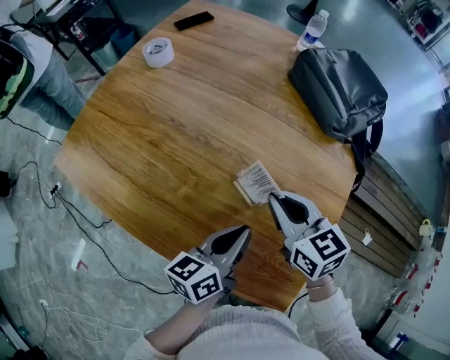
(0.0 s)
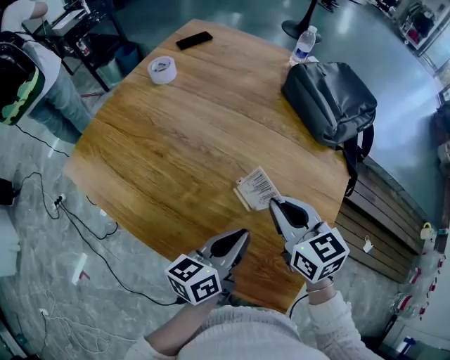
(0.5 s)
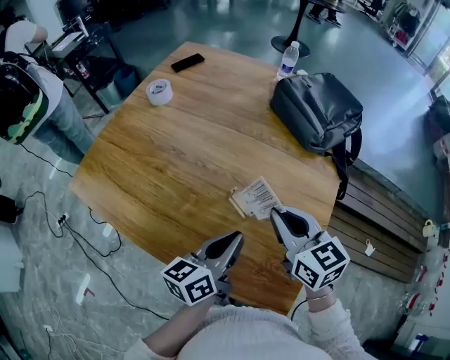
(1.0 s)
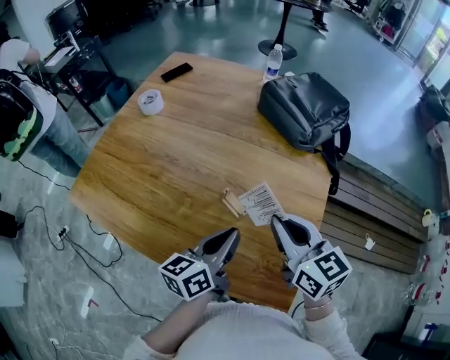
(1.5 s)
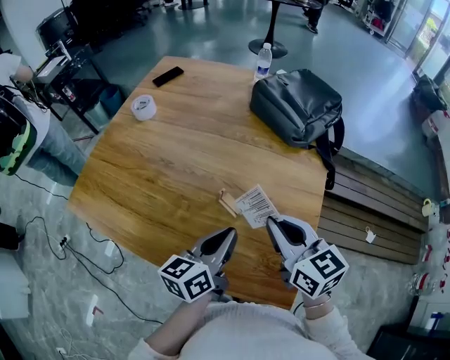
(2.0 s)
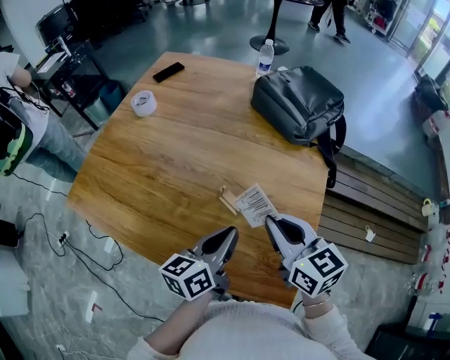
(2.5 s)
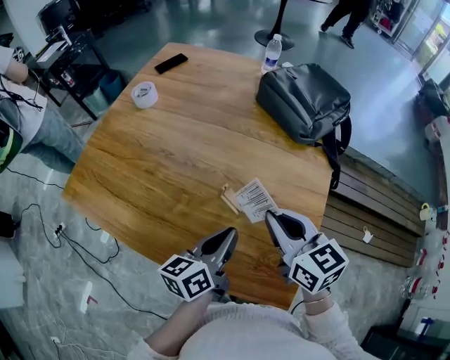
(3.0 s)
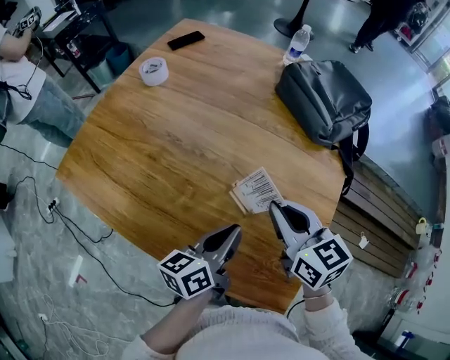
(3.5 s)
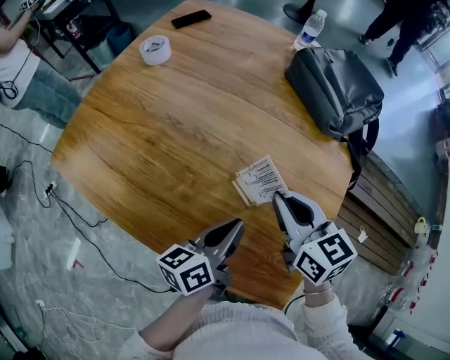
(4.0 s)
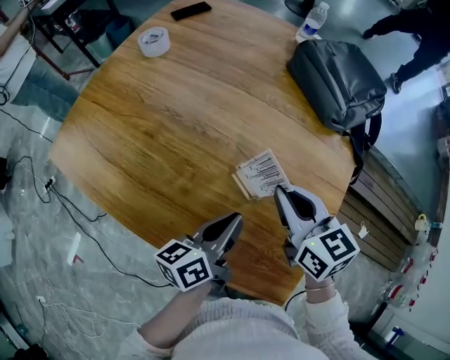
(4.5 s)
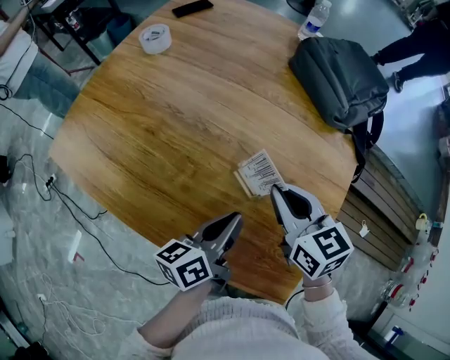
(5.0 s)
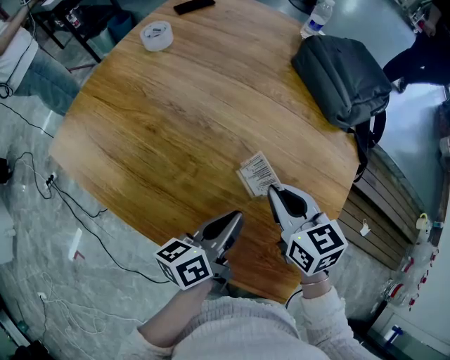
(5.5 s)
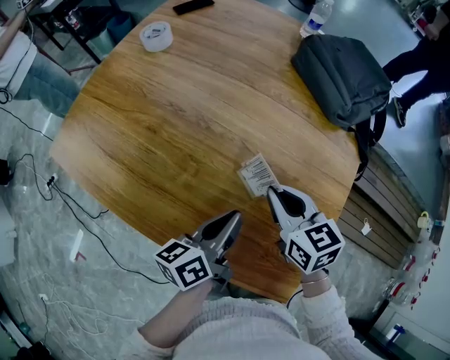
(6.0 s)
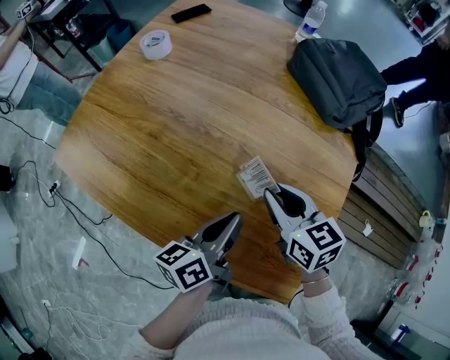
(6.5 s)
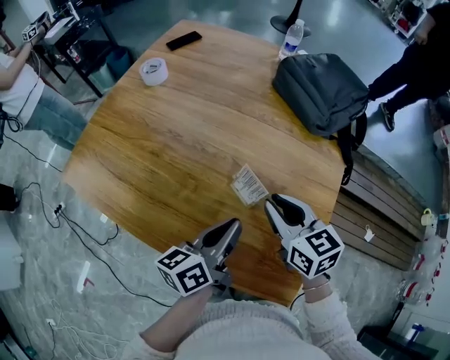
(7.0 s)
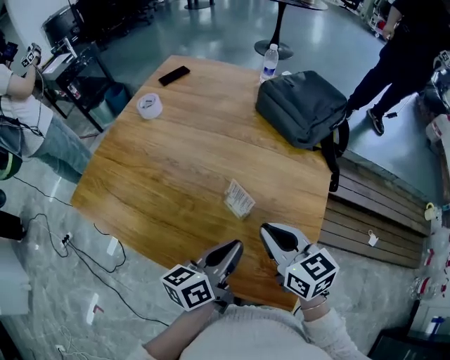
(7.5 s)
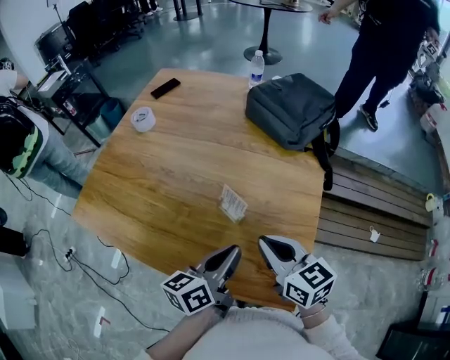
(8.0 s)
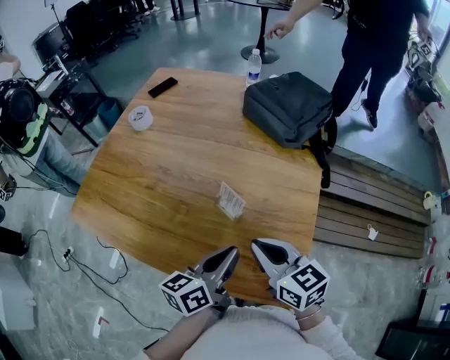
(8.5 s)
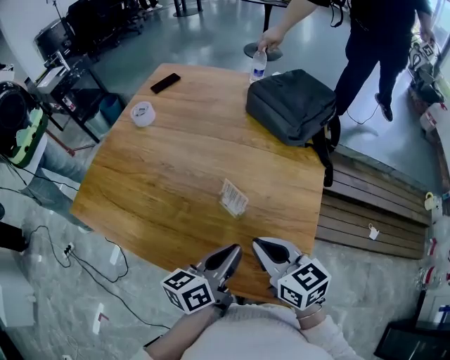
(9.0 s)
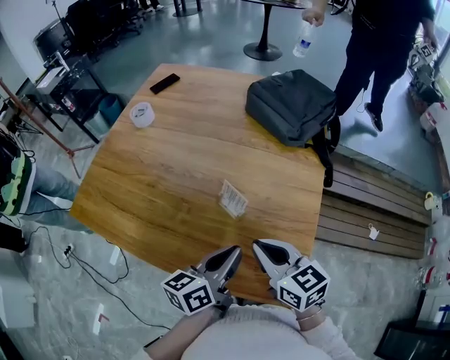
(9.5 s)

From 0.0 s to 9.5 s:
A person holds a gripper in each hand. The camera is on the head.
From 0.0 s to 2.0 s: The right gripper is displaced upward and backward by approximately 10 cm; the left gripper moves upward, some 5 cm.
From 2.0 s to 4.0 s: The left gripper shifts roughly 5 cm downward, while the right gripper is displaced forward and downward by roughly 10 cm.
From 4.0 s to 5.5 s: The grippers stay close to where they were, moving slightly.
From 5.5 s to 7.5 s: The left gripper moves upward, some 5 cm. The right gripper heads backward and upward, covering approximately 10 cm.
From 7.5 s to 9.5 s: The grippers stay close to where they were, moving slightly.

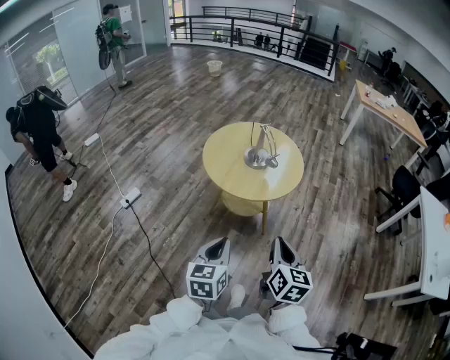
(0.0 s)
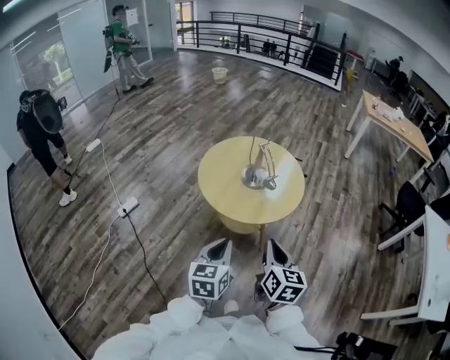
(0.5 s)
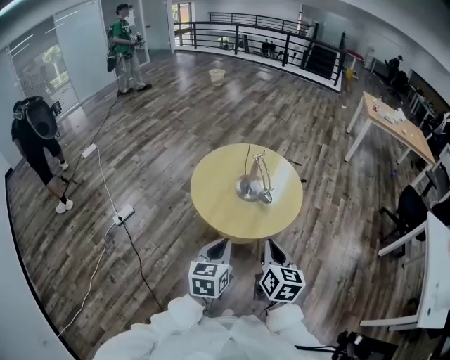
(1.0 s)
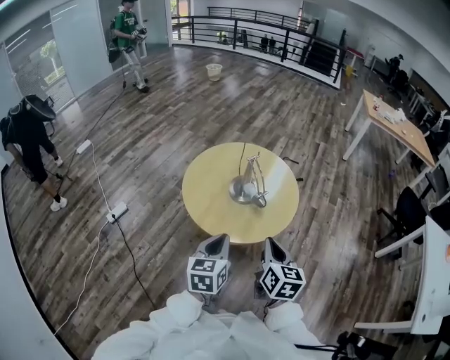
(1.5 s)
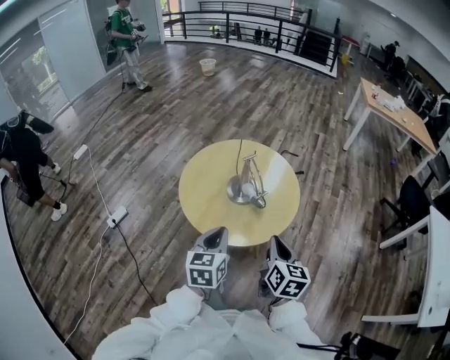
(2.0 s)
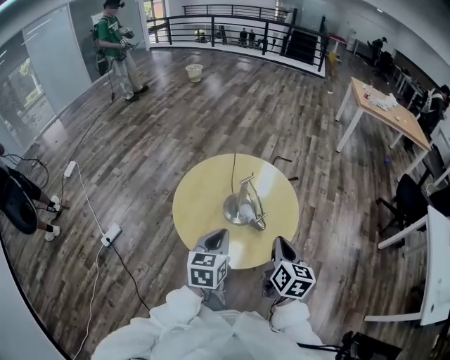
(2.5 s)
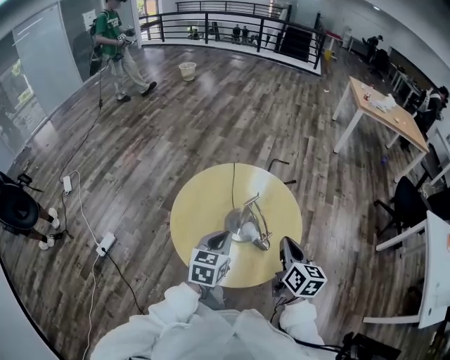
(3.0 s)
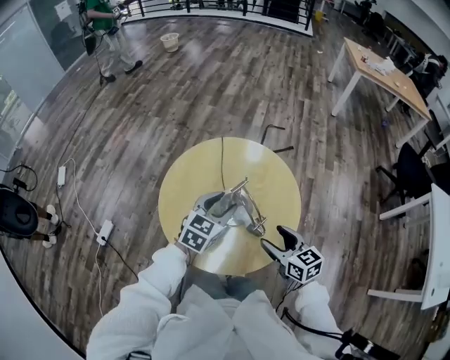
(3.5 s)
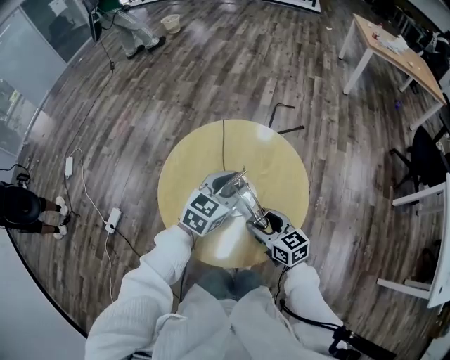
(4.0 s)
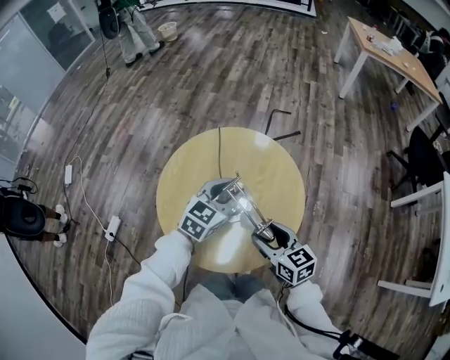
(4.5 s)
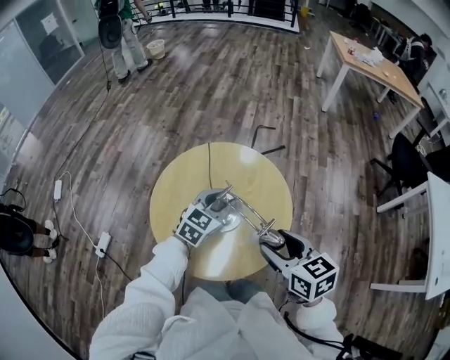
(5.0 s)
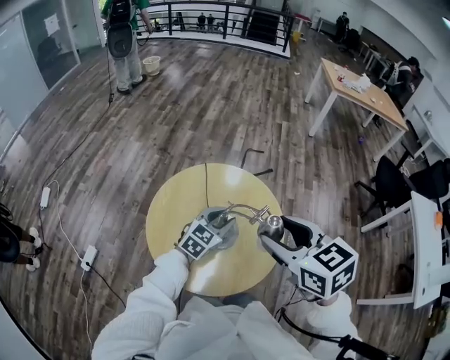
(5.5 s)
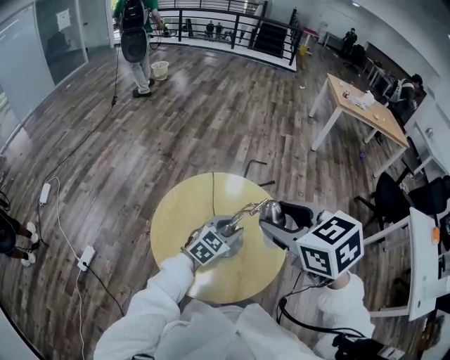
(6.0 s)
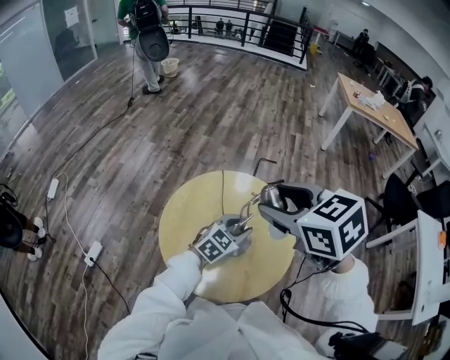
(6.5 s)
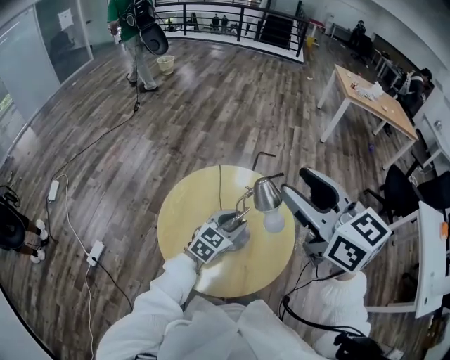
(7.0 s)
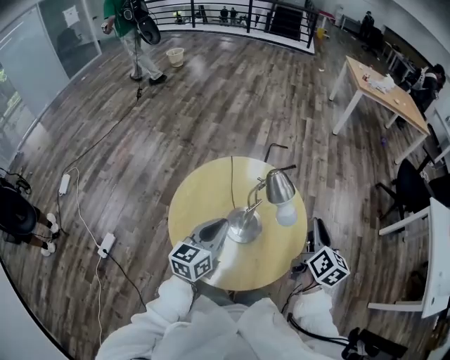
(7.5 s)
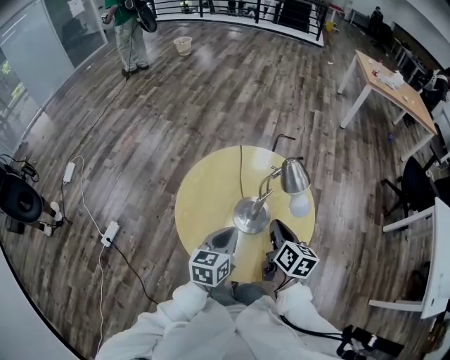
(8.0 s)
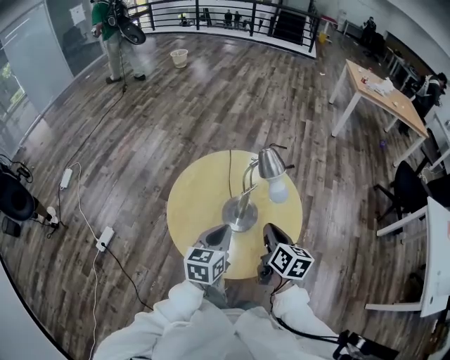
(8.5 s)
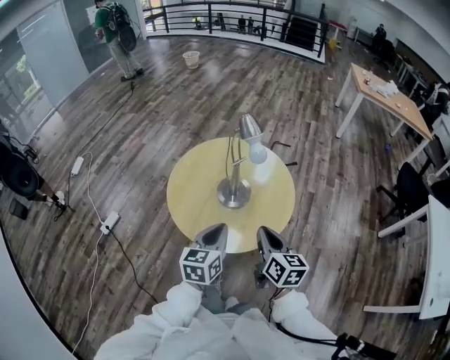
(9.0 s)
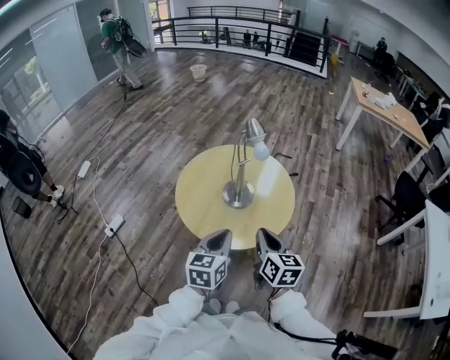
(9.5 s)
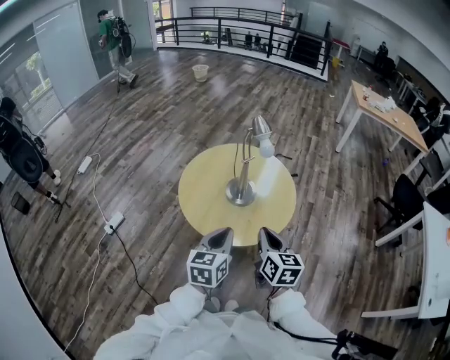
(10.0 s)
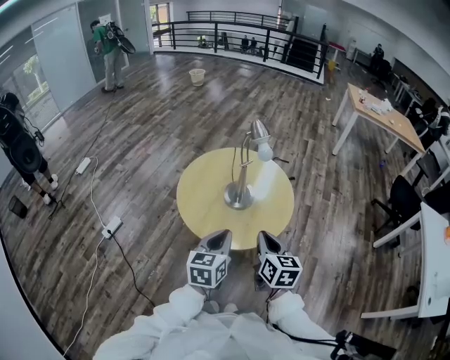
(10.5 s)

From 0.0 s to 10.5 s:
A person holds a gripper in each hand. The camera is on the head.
From 0.0 s to 2.0 s: Both grippers move forward, roughly 30 cm.
From 2.0 s to 4.0 s: The right gripper travels forward and downward by about 25 cm, turns by about 30 degrees, and opens up; the left gripper goes some 30 cm forward, changes its angle by roughly 40 degrees, and opens.
From 4.0 s to 6.5 s: The right gripper heads upward, covering approximately 35 cm, and swivels roughly 30 degrees.
From 6.5 s to 8.5 s: The left gripper is displaced backward and to the left by about 15 cm, turns by roughly 40 degrees, and closes; the right gripper heads downward, covering roughly 25 cm, twists roughly 40 degrees clockwise, seen from behind, and closes up.
From 8.5 s to 10.5 s: The two grippers go approximately 20 cm backward.

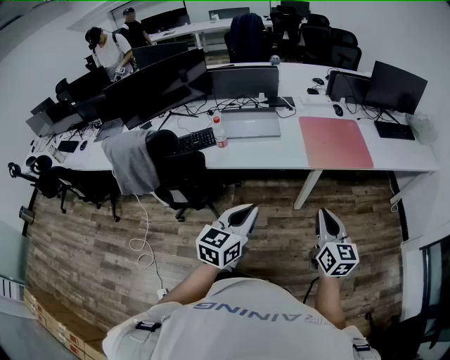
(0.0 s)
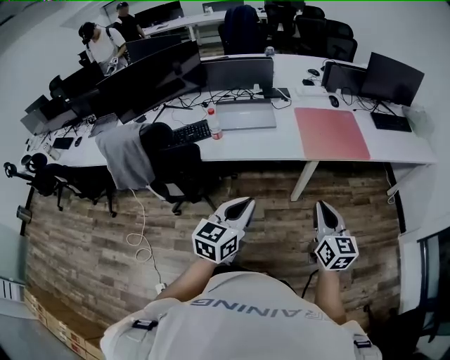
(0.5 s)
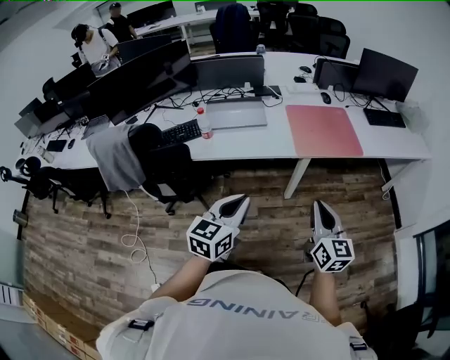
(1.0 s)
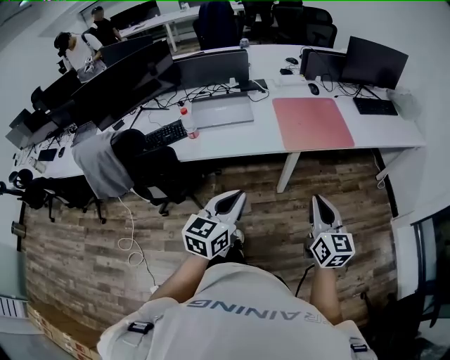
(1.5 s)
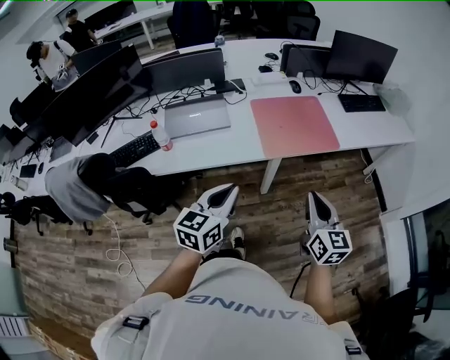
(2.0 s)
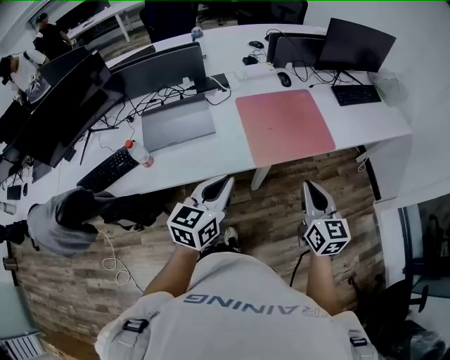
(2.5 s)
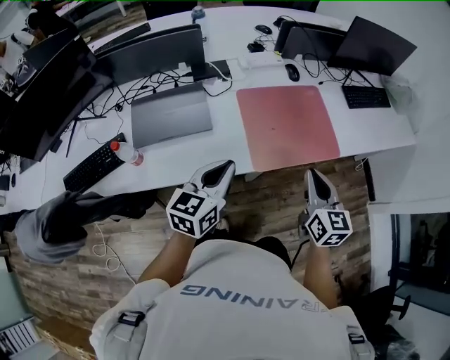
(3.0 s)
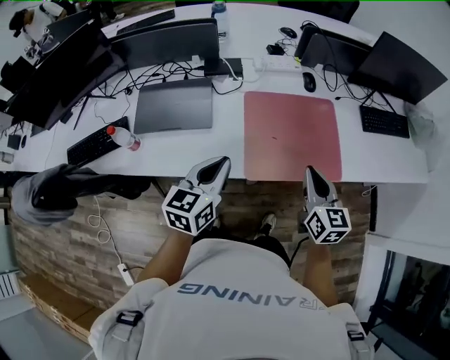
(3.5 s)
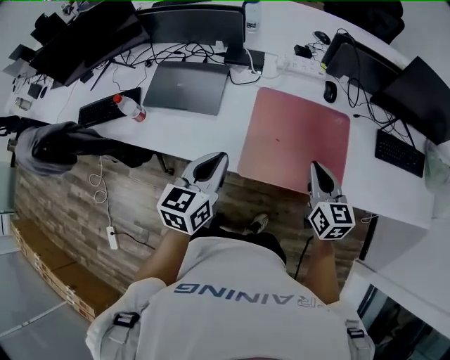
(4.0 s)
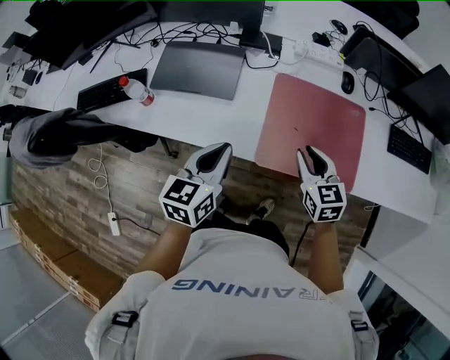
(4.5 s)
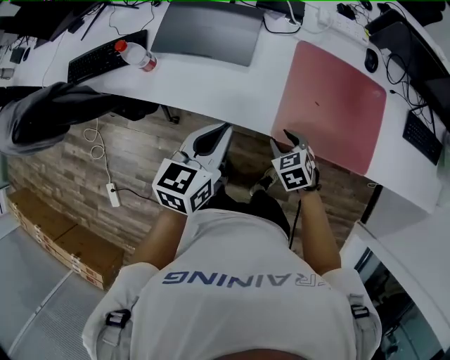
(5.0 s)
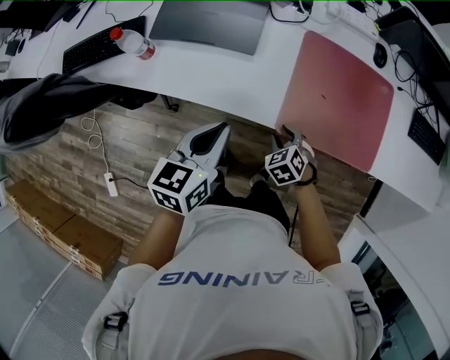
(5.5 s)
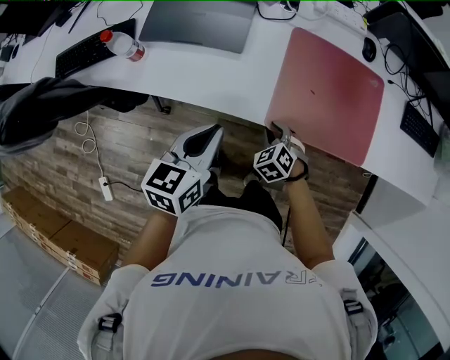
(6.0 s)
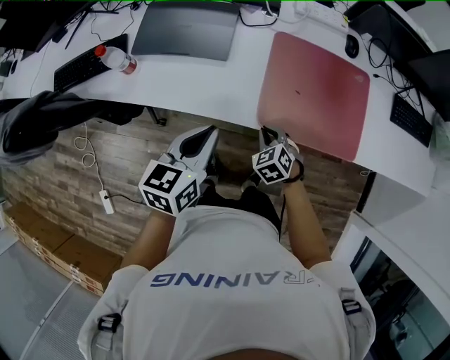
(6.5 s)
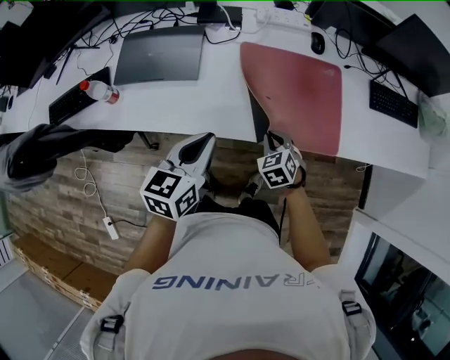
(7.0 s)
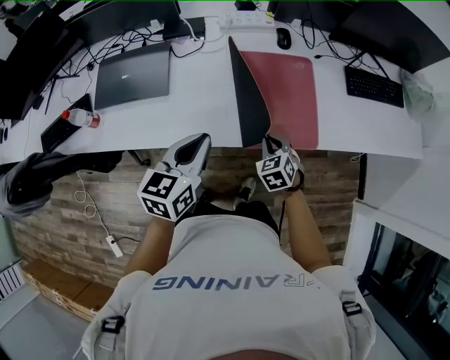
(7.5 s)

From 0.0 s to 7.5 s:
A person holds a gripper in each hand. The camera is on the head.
From 0.0 s to 2.0 s: The two grippers go roughly 15 cm forward and to the right.
From 2.0 s to 4.0 s: The left gripper ends up about 25 cm from where it was, and changes its angle by roughly 30 degrees, while the right gripper moves roughly 35 cm, and changes its angle by about 30 degrees.
From 4.0 s to 5.5 s: The left gripper moves to the left and downward, approximately 15 cm, while the right gripper goes approximately 30 cm downward and to the left, tilts its fingers approximately 50 degrees downward, and opens up.
From 5.5 s to 7.5 s: The left gripper shifts approximately 20 cm to the right. The right gripper shifts roughly 20 cm to the right and upward, turns by some 30 degrees, and closes.
